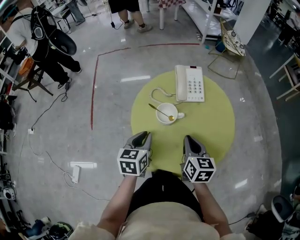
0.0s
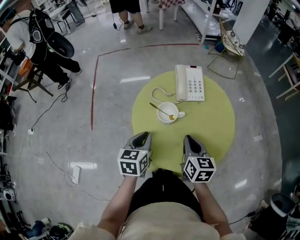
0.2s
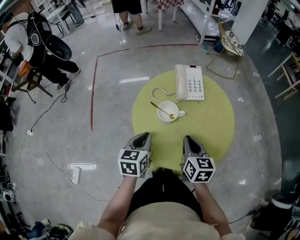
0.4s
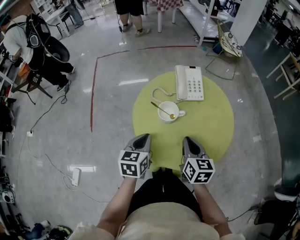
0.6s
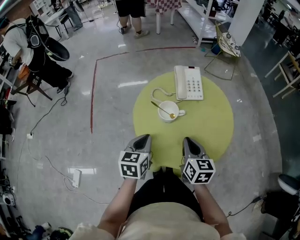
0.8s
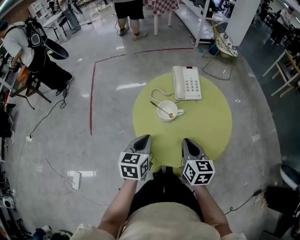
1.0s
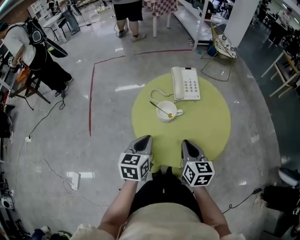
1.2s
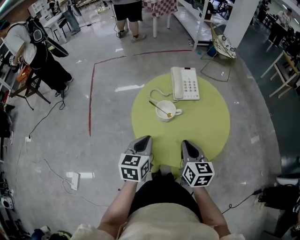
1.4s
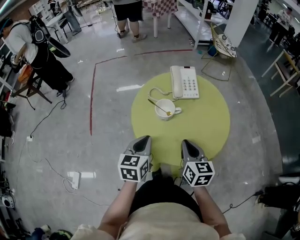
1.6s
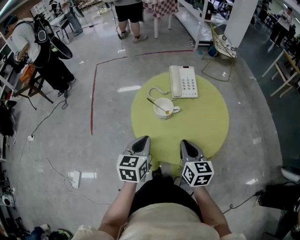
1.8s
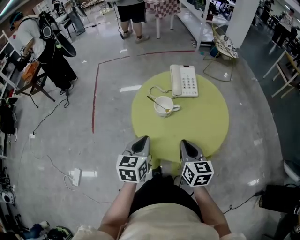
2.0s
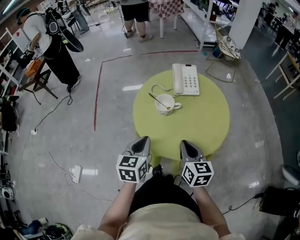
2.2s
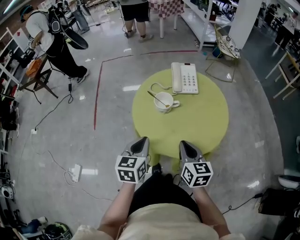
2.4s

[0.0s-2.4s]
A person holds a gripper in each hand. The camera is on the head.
0.0s to 1.2s: The left gripper changes place by roughly 5 cm. The right gripper is displaced backward by roughly 5 cm.
1.2s to 2.4s: The grippers both shift backward by some 5 cm.

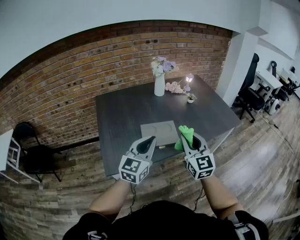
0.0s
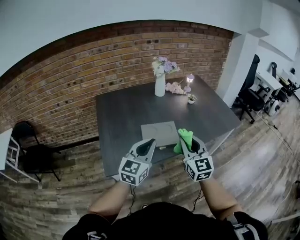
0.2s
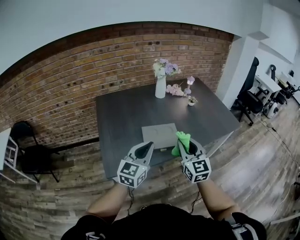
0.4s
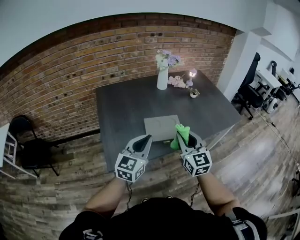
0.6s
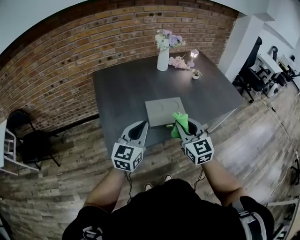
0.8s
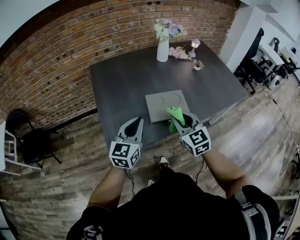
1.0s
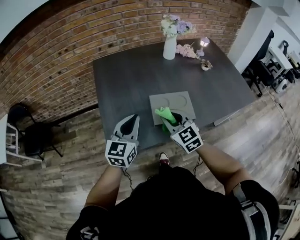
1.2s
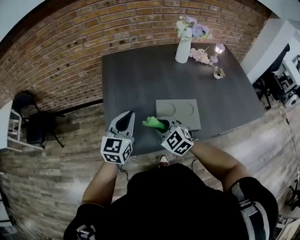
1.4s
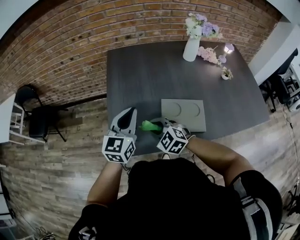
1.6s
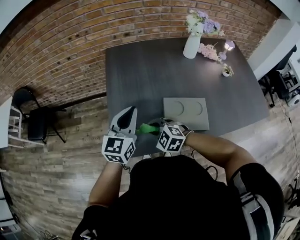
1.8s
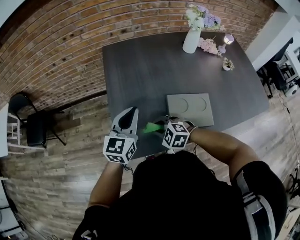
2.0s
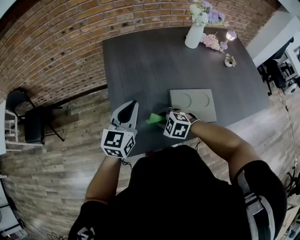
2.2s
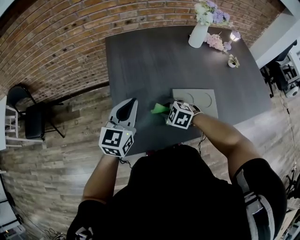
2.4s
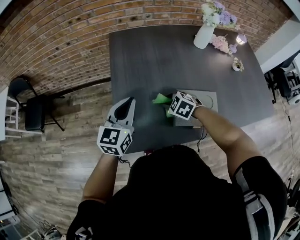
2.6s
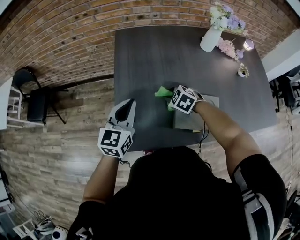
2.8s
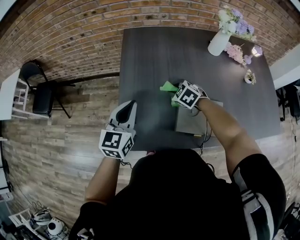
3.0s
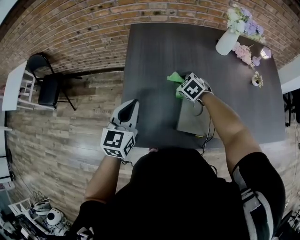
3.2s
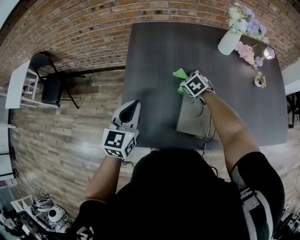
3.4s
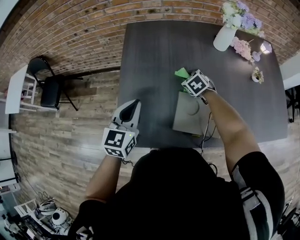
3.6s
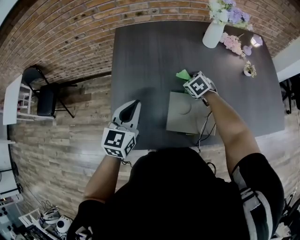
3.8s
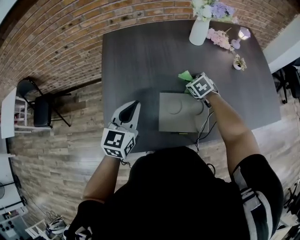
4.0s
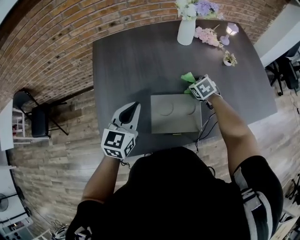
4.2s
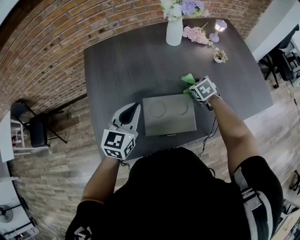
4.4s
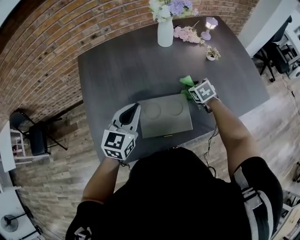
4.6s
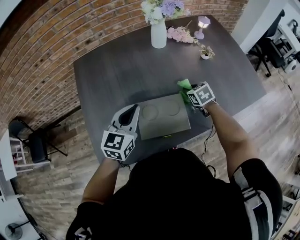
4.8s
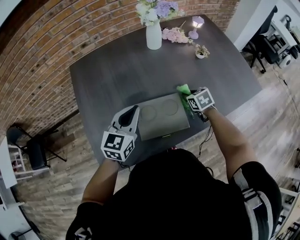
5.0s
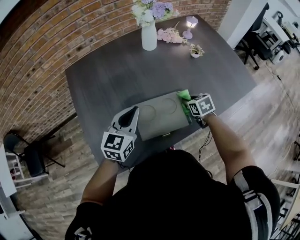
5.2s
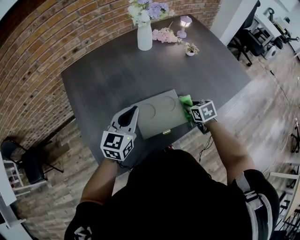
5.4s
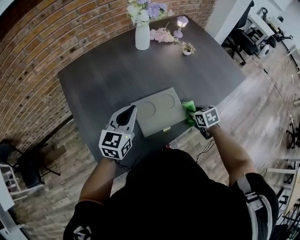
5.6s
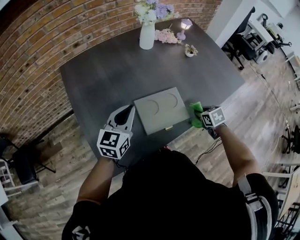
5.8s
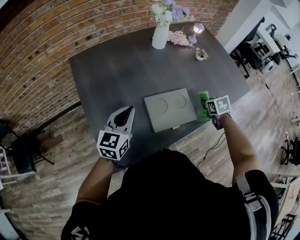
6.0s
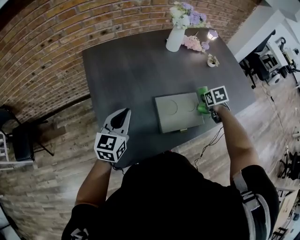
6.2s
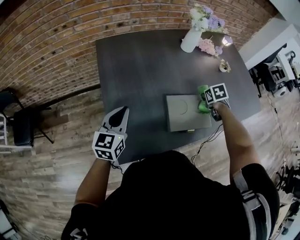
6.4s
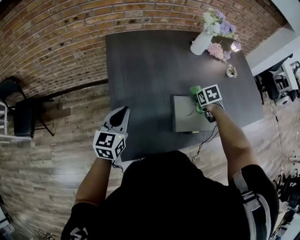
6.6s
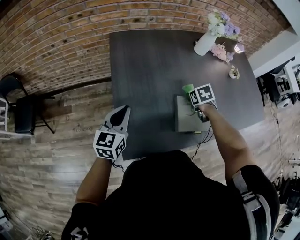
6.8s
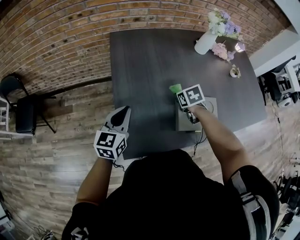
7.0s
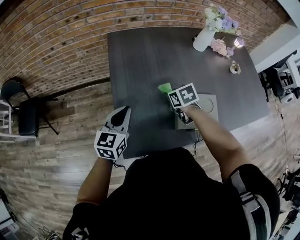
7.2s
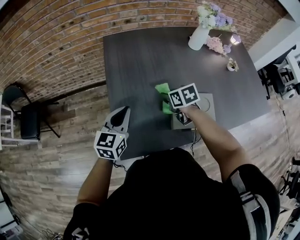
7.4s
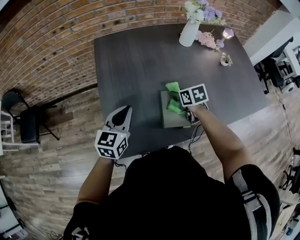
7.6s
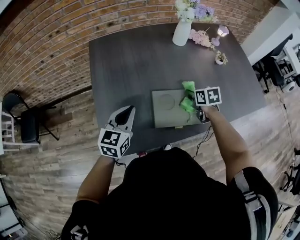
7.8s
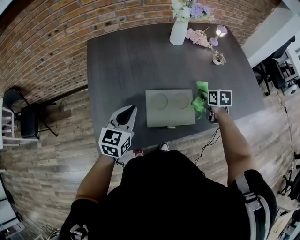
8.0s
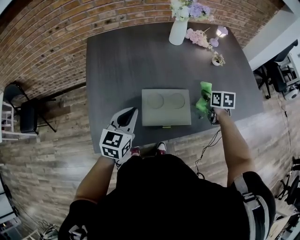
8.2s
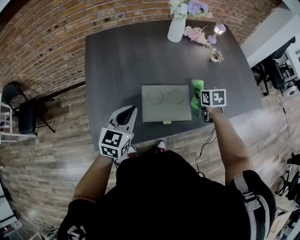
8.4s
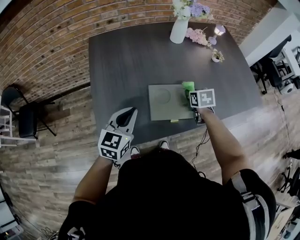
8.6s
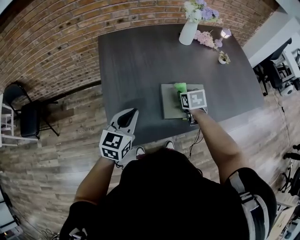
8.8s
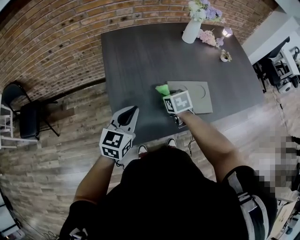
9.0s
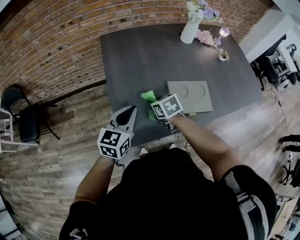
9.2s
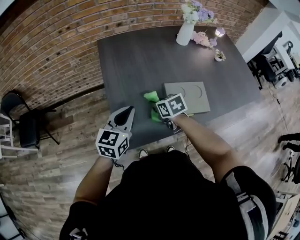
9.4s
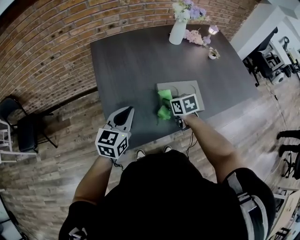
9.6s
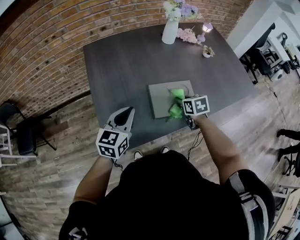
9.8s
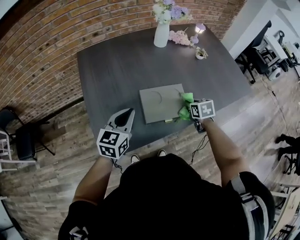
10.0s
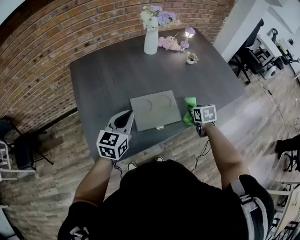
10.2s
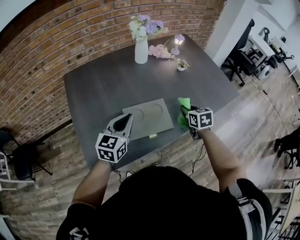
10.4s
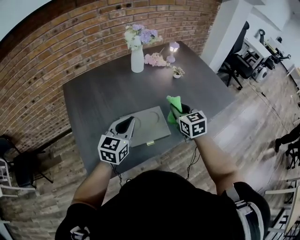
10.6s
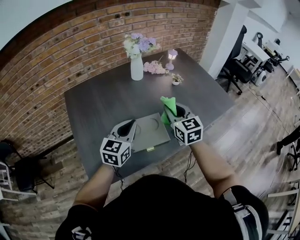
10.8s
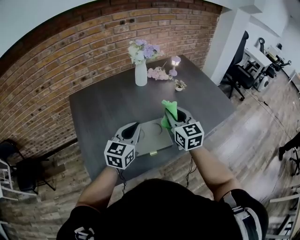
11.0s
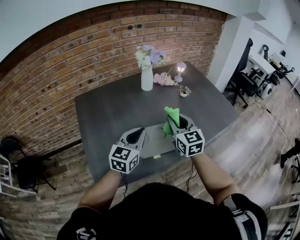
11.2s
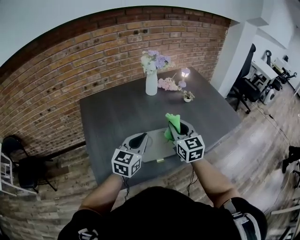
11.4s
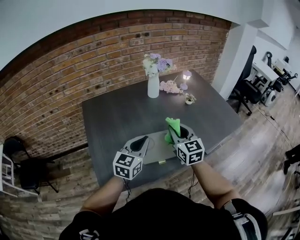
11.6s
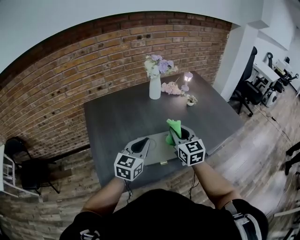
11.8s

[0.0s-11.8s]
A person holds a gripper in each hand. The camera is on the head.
0.0s to 1.4s: The left gripper shifts by some 20 cm, and swivels approximately 20 degrees; the right gripper changes place by about 30 cm, and tips its fingers downward by some 30 degrees.
1.4s to 3.0s: The right gripper moves forward and downward, approximately 20 cm, and changes its angle by some 30 degrees; the left gripper travels forward and to the left by approximately 10 cm.
3.0s to 4.4s: The left gripper ends up approximately 20 cm from where it was. The right gripper changes place by about 30 cm, and swivels some 40 degrees.
4.4s to 6.0s: The right gripper heads backward and to the right, covering approximately 15 cm, and rotates approximately 30 degrees. The left gripper moves to the left, approximately 5 cm.
6.0s to 7.4s: The left gripper ends up approximately 15 cm from where it was; the right gripper shifts by approximately 35 cm, and turns by about 30 degrees.
7.4s to 8.8s: The right gripper travels to the right by approximately 15 cm, and changes its angle by approximately 20 degrees; the left gripper heads to the right and backward, covering about 10 cm.
8.8s to 10.4s: The right gripper heads to the right, covering about 20 cm; the left gripper is displaced to the right and forward by about 15 cm.
10.4s to 11.8s: The right gripper travels upward and to the left by approximately 20 cm, and swivels some 30 degrees.

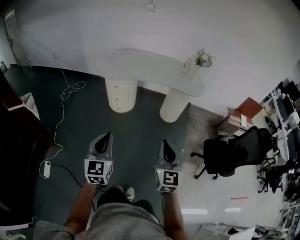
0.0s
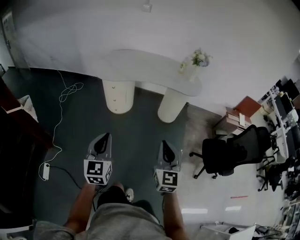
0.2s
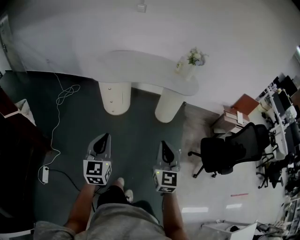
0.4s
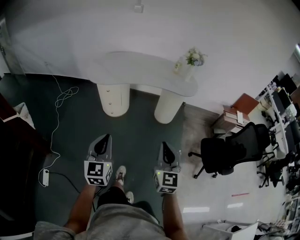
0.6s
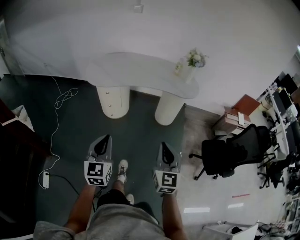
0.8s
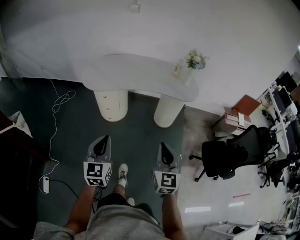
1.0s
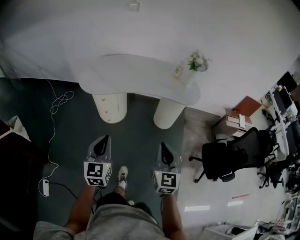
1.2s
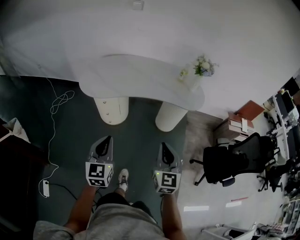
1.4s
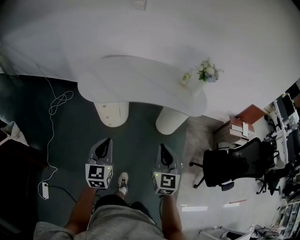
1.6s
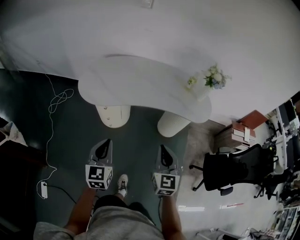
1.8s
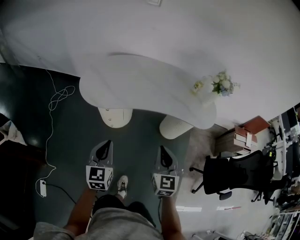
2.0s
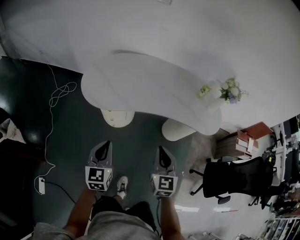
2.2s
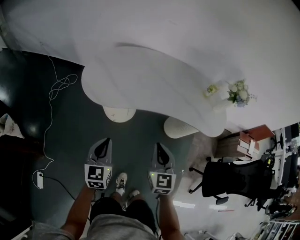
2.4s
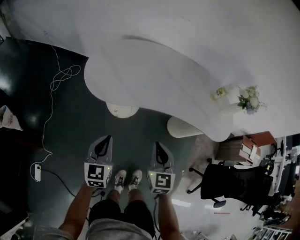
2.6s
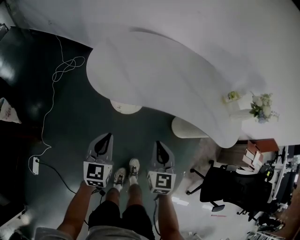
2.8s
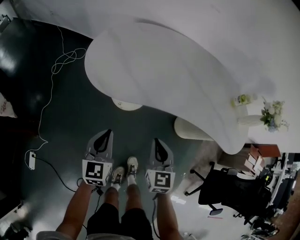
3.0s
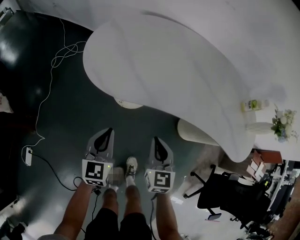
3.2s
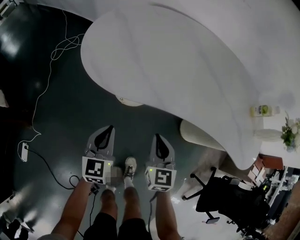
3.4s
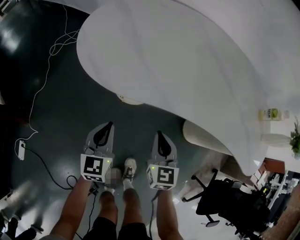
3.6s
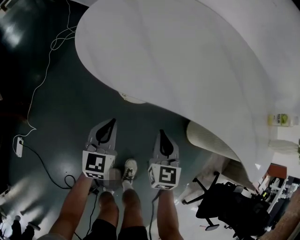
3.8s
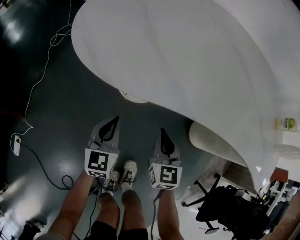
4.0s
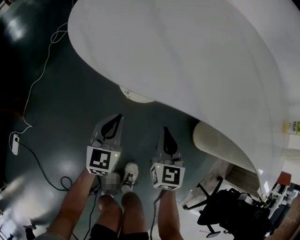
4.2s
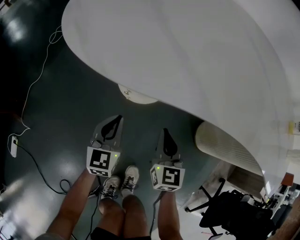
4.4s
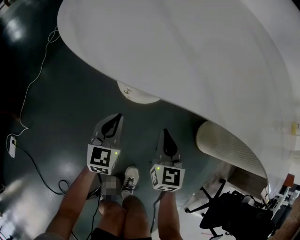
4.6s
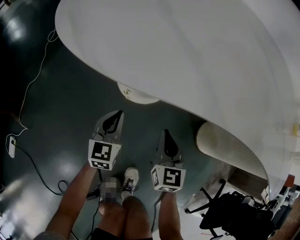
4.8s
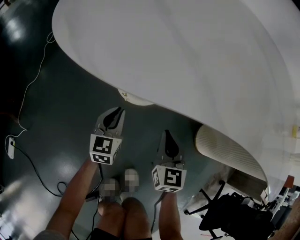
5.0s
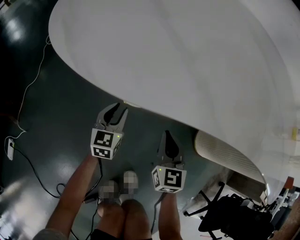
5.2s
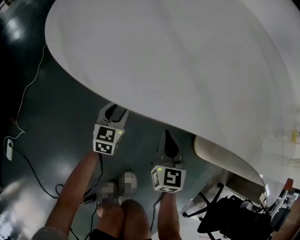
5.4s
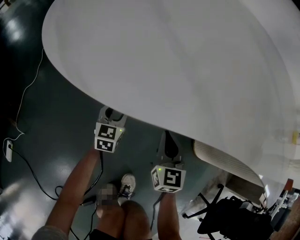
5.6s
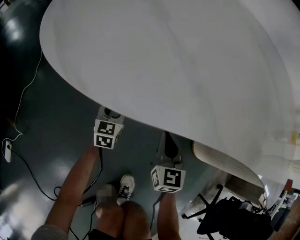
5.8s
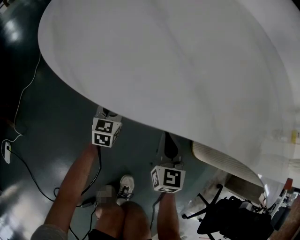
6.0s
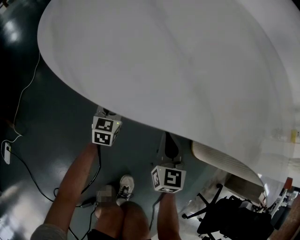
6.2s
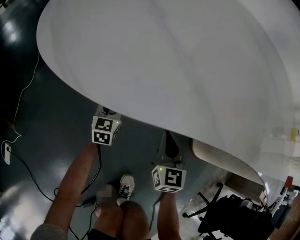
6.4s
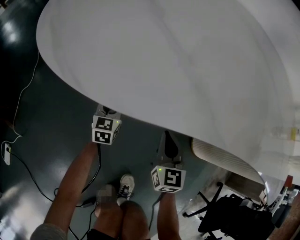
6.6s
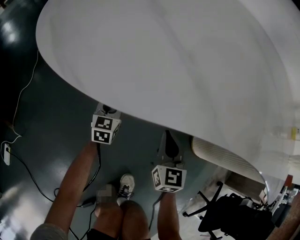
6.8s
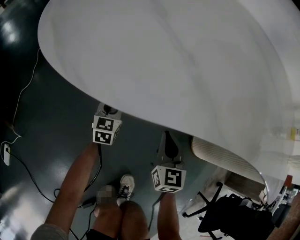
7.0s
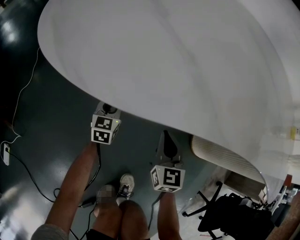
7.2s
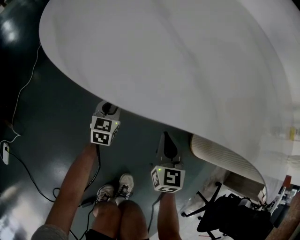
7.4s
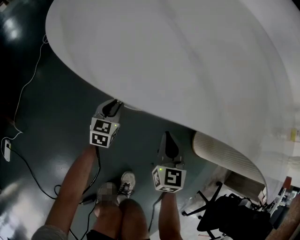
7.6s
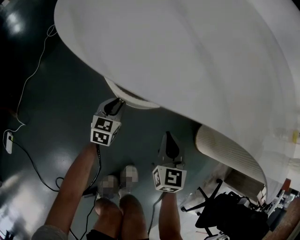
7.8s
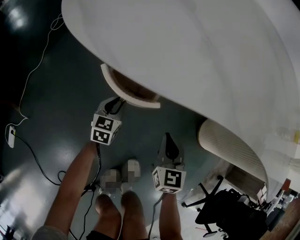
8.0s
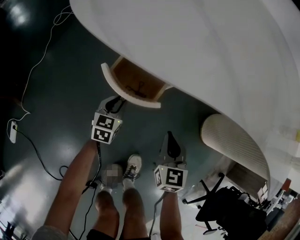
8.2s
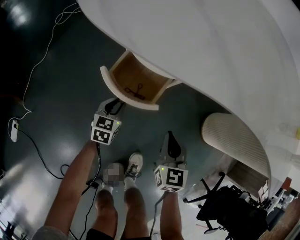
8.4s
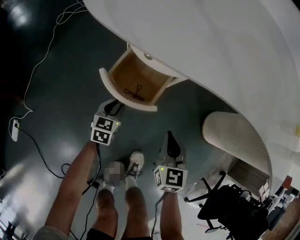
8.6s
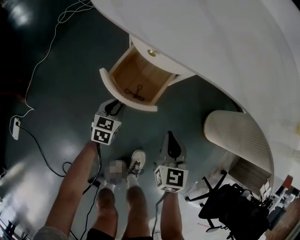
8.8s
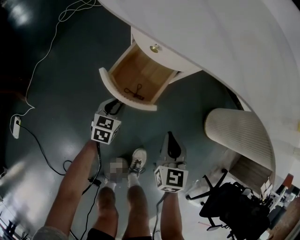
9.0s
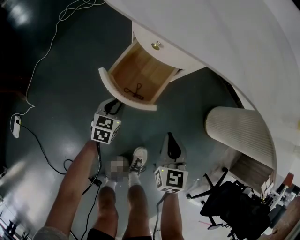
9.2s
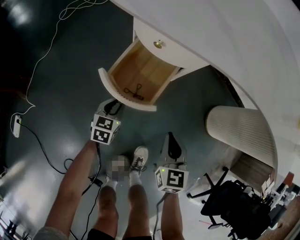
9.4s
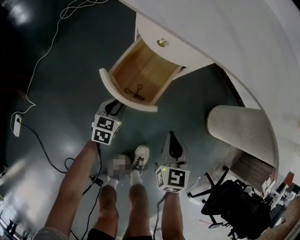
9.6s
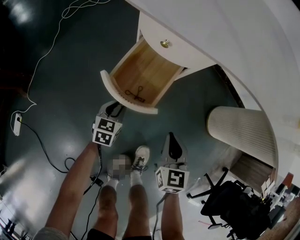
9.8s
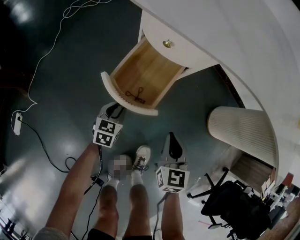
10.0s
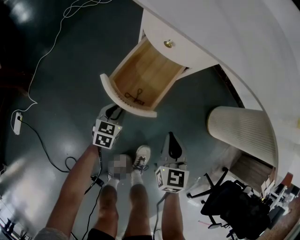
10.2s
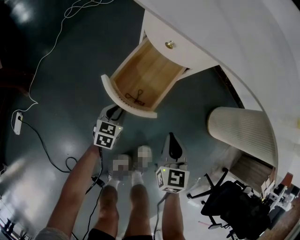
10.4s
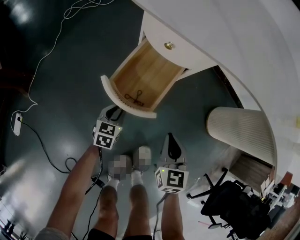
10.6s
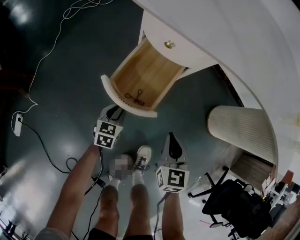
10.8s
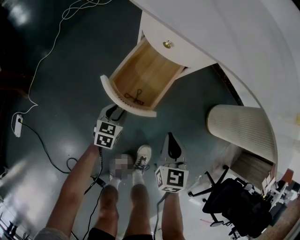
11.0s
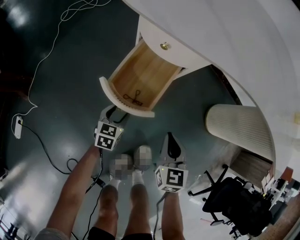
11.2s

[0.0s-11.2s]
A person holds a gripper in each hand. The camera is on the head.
0.0s to 1.6s: Both grippers travel together forward, approximately 30 cm.
1.6s to 3.2s: The right gripper heads forward, downward and to the left, covering about 40 cm, and turns by approximately 20 degrees; the left gripper is displaced downward and forward by approximately 35 cm.
3.2s to 4.8s: Both grippers travel together downward, about 30 cm.
4.8s to 6.4s: The right gripper changes place by roughly 5 cm. Meanwhile the left gripper heads forward and downward, covering about 15 cm, and opens its fingers.
6.4s to 8.0s: Both grippers move backward, approximately 5 cm.
8.0s to 9.6s: The two grippers go about 10 cm backward.
9.6s to 11.2s: The left gripper opens.
